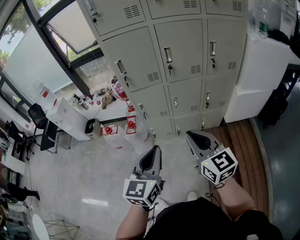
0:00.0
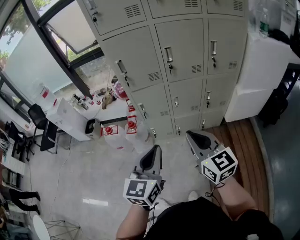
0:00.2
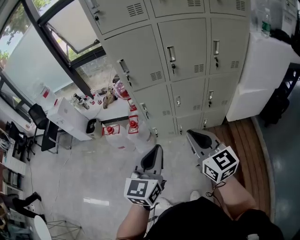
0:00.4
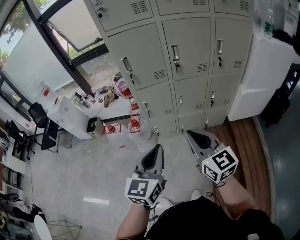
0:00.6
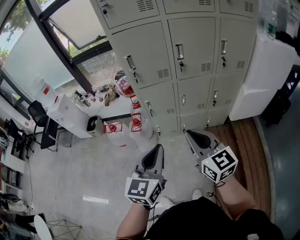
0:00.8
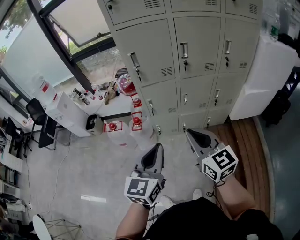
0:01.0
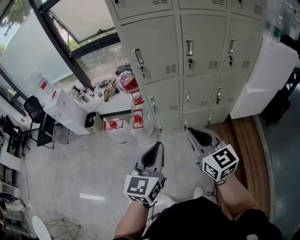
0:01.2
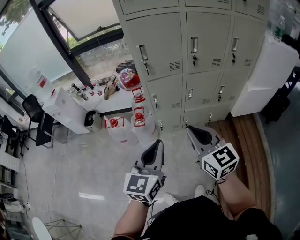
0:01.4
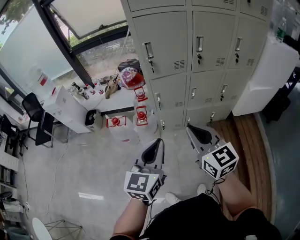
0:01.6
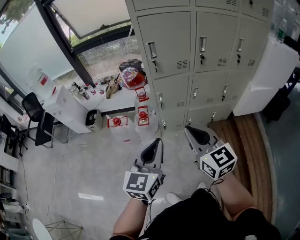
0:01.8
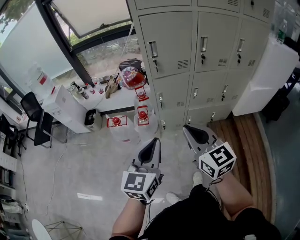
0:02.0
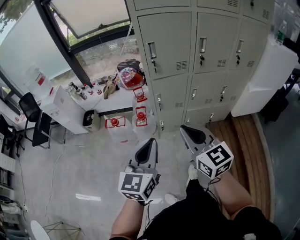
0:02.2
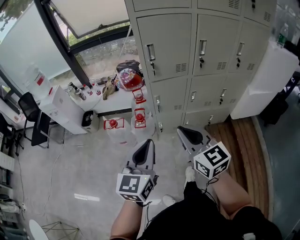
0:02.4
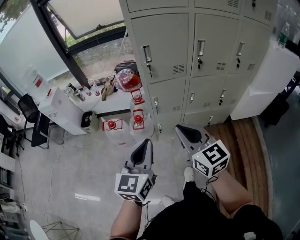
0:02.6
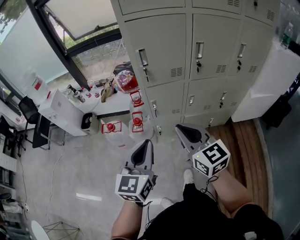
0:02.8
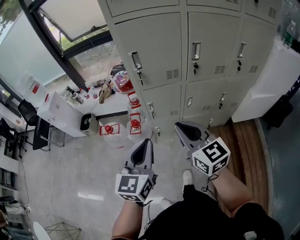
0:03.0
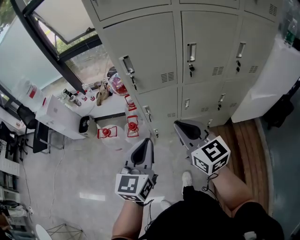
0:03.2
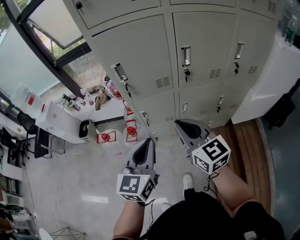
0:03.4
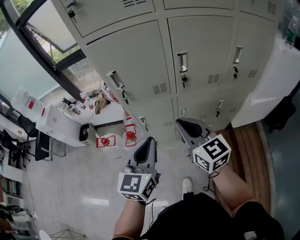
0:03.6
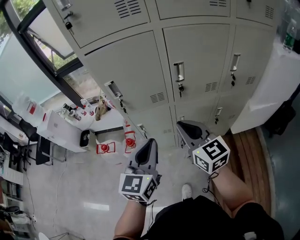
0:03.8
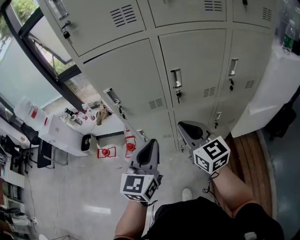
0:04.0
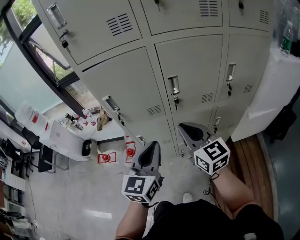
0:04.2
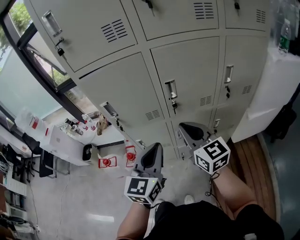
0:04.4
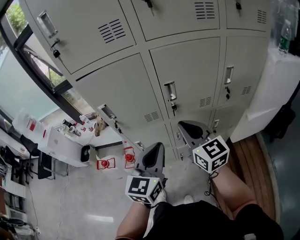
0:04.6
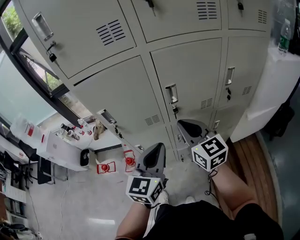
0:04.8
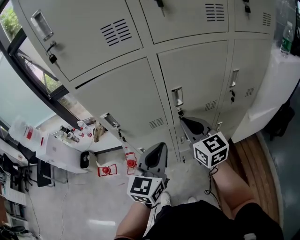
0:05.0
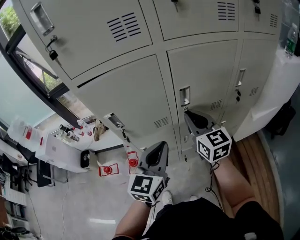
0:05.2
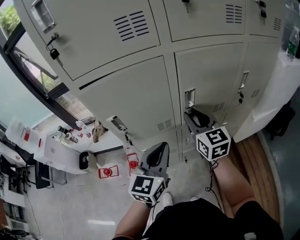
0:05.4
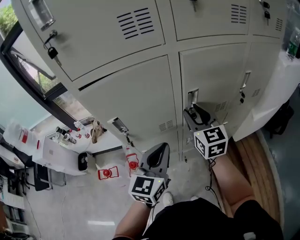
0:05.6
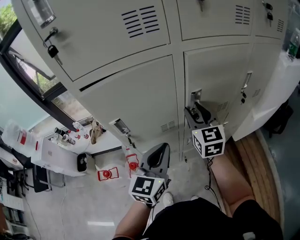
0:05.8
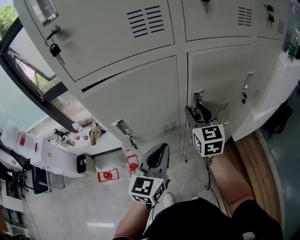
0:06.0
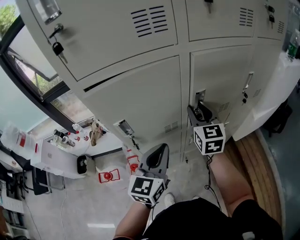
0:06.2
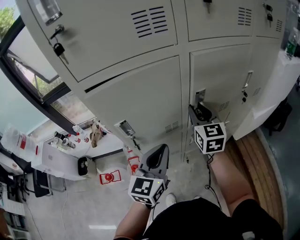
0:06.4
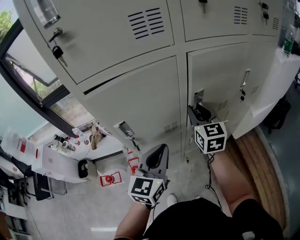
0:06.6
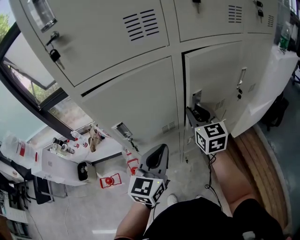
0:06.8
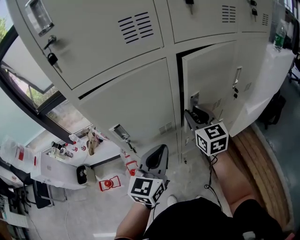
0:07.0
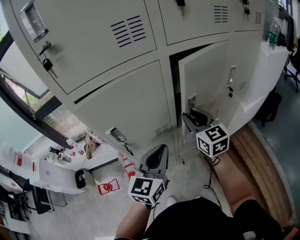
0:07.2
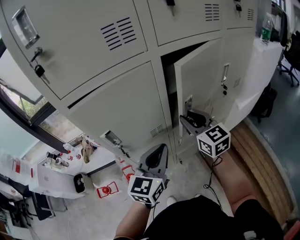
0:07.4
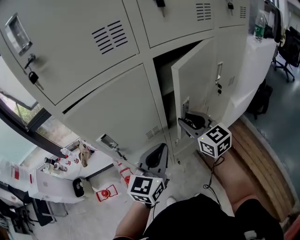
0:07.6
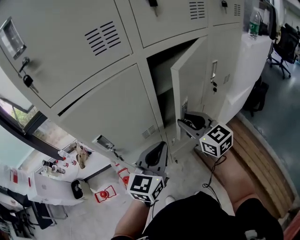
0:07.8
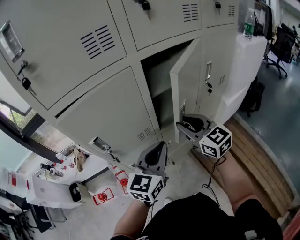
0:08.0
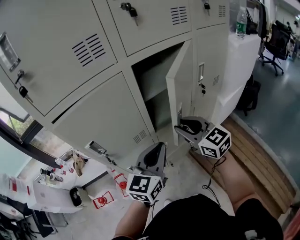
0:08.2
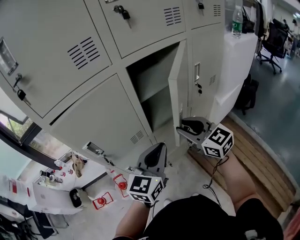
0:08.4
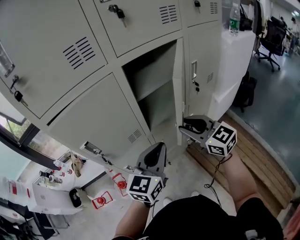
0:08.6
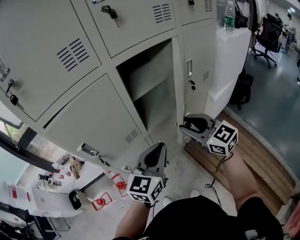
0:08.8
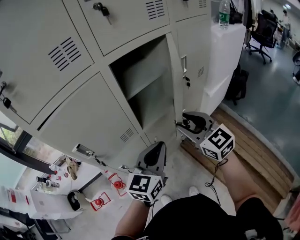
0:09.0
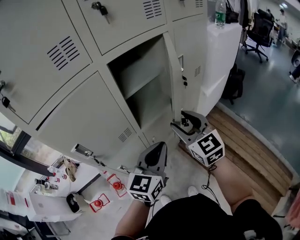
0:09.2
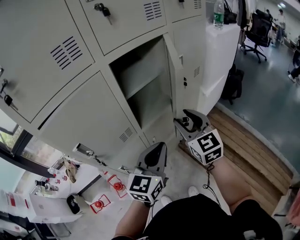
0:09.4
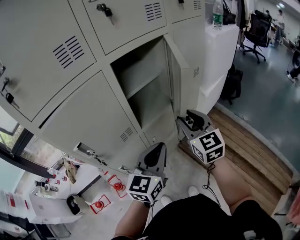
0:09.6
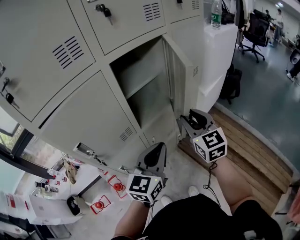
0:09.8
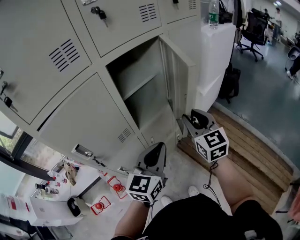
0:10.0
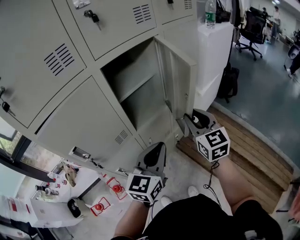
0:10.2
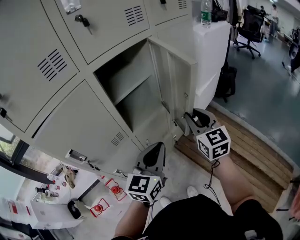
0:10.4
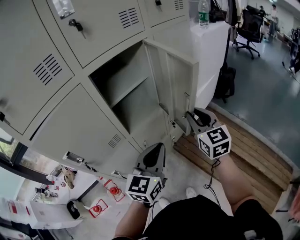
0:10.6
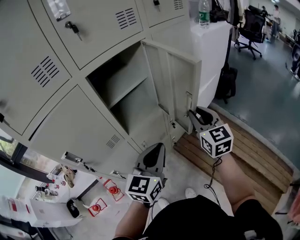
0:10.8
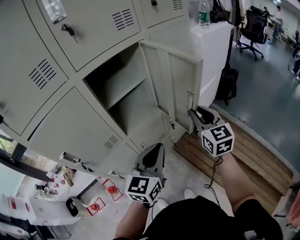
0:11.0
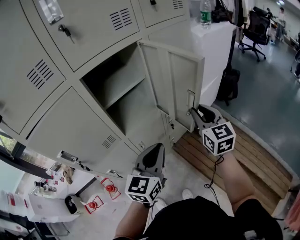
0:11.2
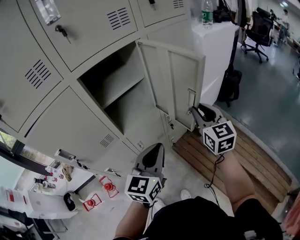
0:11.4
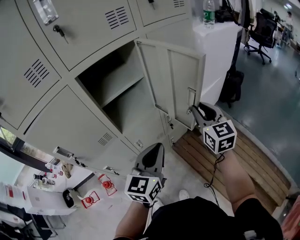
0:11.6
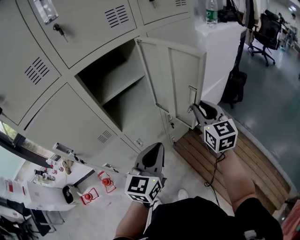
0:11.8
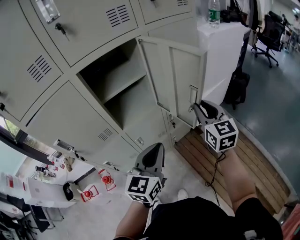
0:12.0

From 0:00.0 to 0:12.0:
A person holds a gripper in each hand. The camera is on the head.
From 0:00.0 to 0:01.6: Both grippers move to the left, roughly 15 cm.
From 0:01.6 to 0:03.0: Both grippers move forward, about 10 cm.
From 0:03.0 to 0:04.4: Both grippers travel together to the right and forward, roughly 25 cm.
From 0:04.4 to 0:06.0: The right gripper is displaced forward by about 15 cm, rotates about 30 degrees, and opens up. The left gripper moves forward and to the left, about 15 cm.
From 0:06.0 to 0:07.6: The right gripper travels backward by some 5 cm.
From 0:07.6 to 0:09.0: The right gripper goes some 10 cm to the right and backward. The left gripper is displaced to the right by roughly 10 cm.
From 0:09.0 to 0:10.4: The right gripper travels to the right by some 10 cm, and changes its angle by about 30 degrees.
From 0:10.4 to 0:12.0: The right gripper moves to the right and forward, roughly 10 cm. The left gripper travels to the right by some 10 cm.

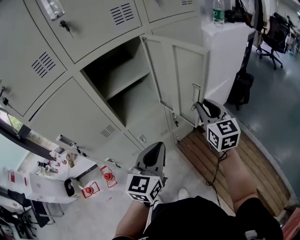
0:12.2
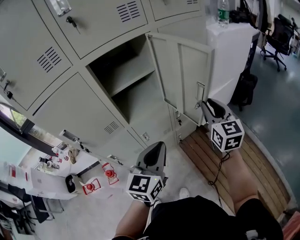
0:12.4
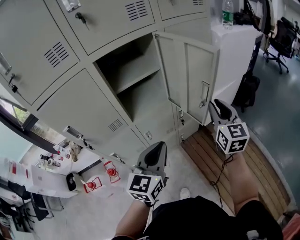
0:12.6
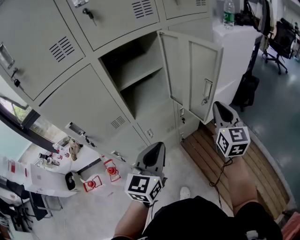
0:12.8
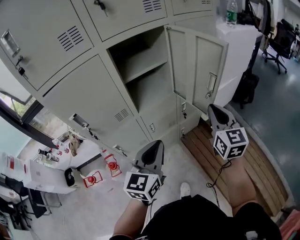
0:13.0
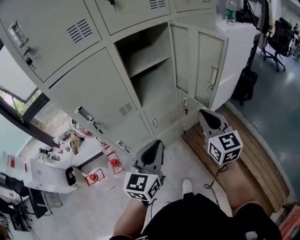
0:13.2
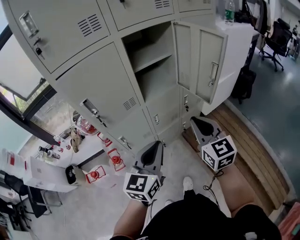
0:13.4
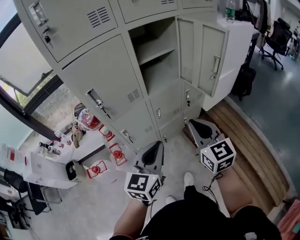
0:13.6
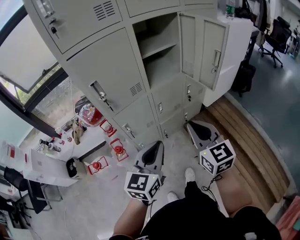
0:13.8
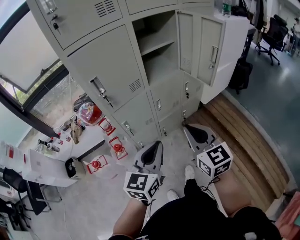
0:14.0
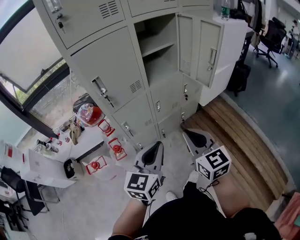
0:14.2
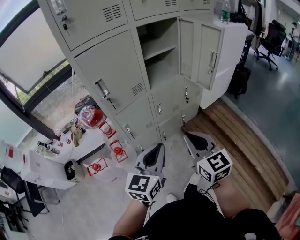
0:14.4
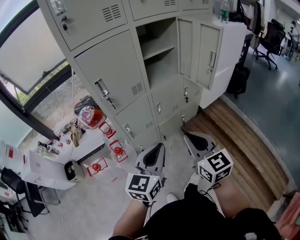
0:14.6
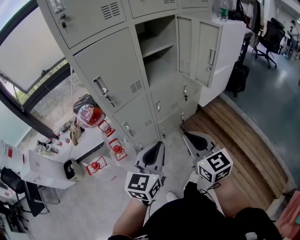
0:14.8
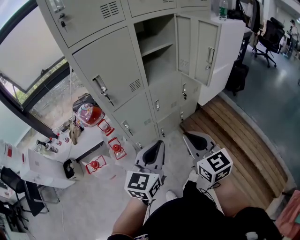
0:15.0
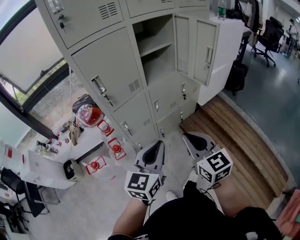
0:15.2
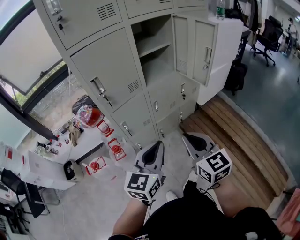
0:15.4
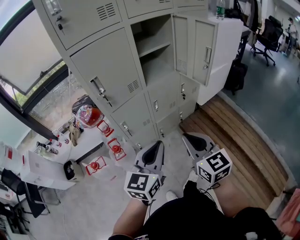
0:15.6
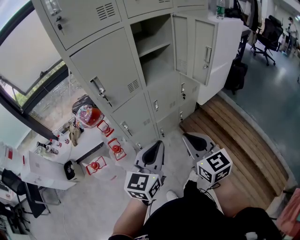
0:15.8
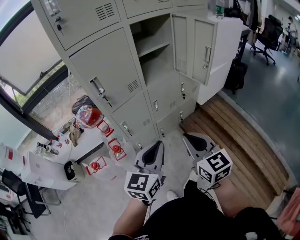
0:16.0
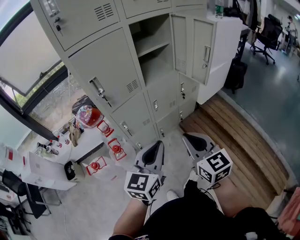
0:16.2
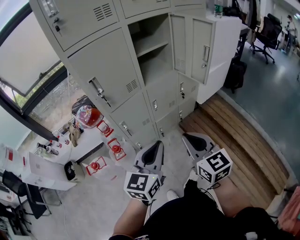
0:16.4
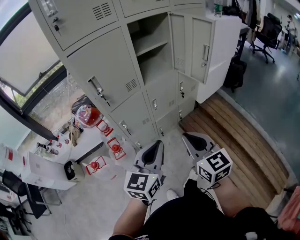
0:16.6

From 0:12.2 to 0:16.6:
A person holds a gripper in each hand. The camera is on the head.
From 0:12.2 to 0:13.6: The two grippers go roughly 25 cm backward and to the left.
From 0:13.6 to 0:15.2: The right gripper moves backward, some 10 cm. The left gripper goes some 10 cm backward.
From 0:15.2 to 0:16.6: Both grippers stay put.

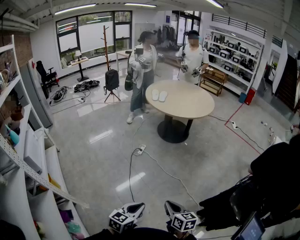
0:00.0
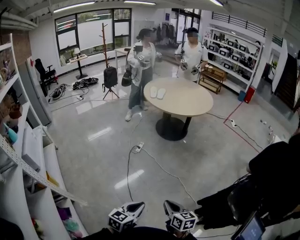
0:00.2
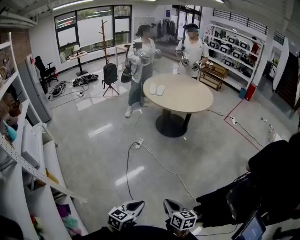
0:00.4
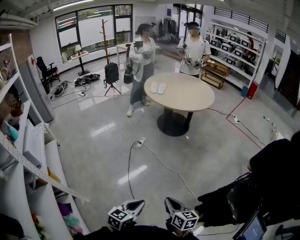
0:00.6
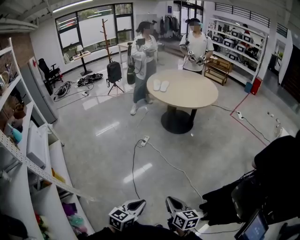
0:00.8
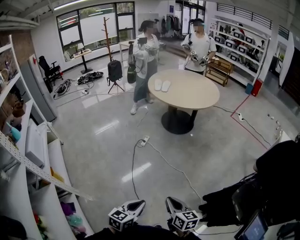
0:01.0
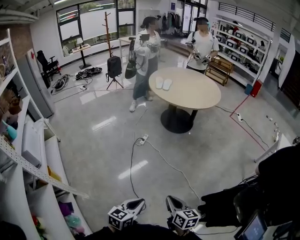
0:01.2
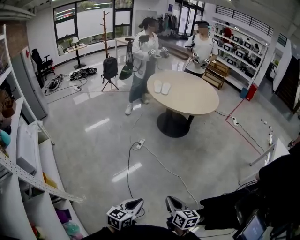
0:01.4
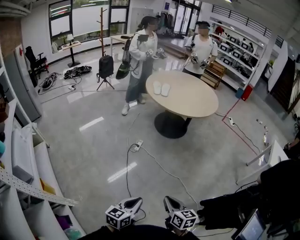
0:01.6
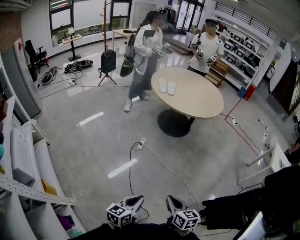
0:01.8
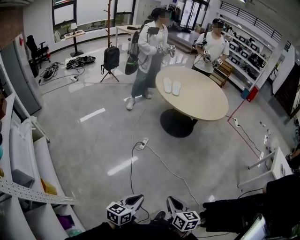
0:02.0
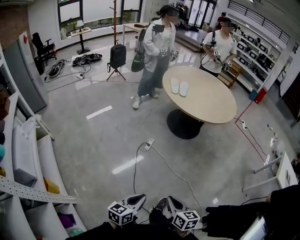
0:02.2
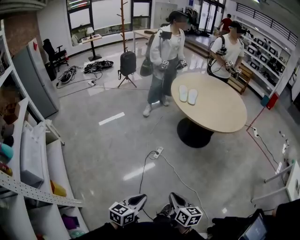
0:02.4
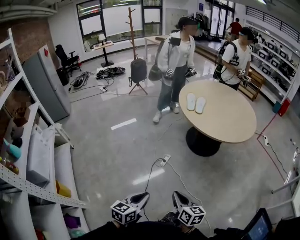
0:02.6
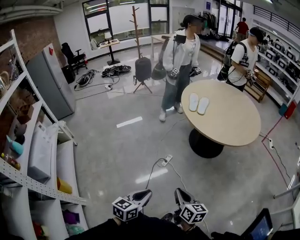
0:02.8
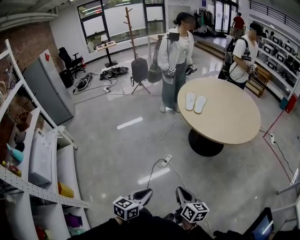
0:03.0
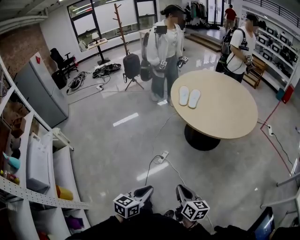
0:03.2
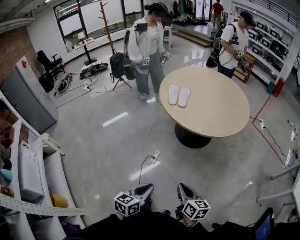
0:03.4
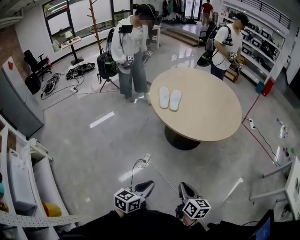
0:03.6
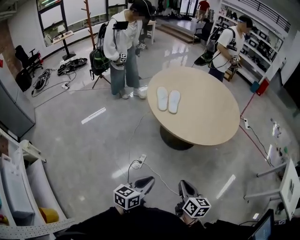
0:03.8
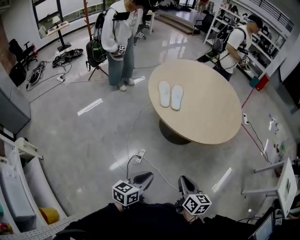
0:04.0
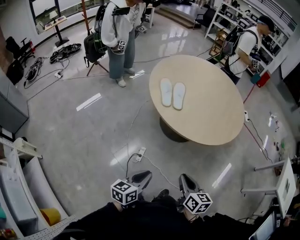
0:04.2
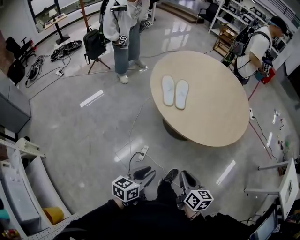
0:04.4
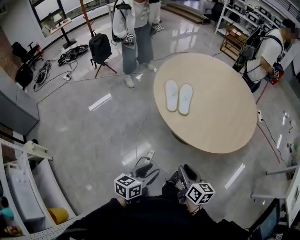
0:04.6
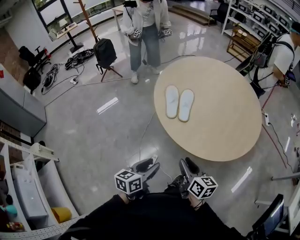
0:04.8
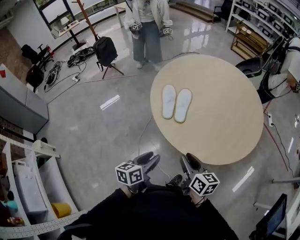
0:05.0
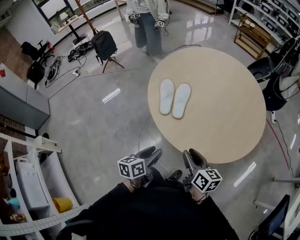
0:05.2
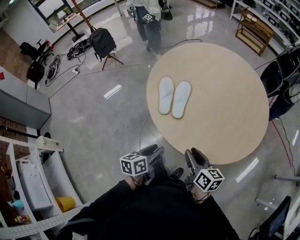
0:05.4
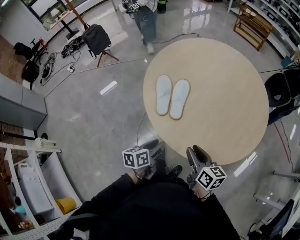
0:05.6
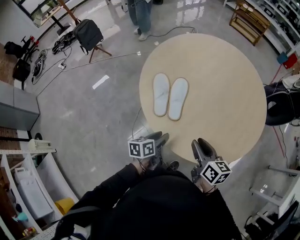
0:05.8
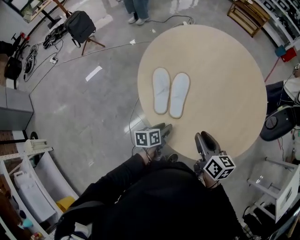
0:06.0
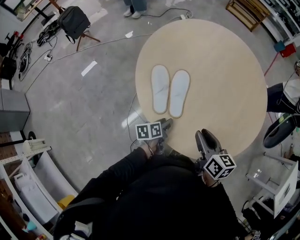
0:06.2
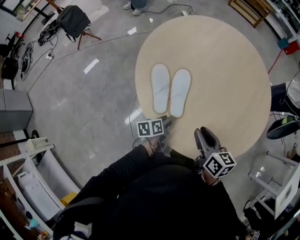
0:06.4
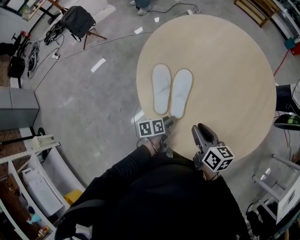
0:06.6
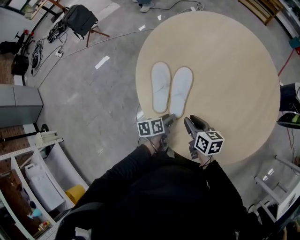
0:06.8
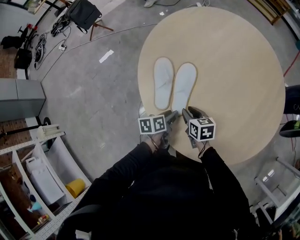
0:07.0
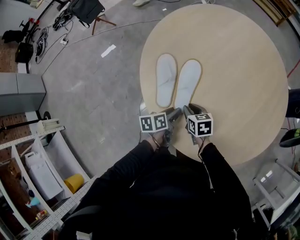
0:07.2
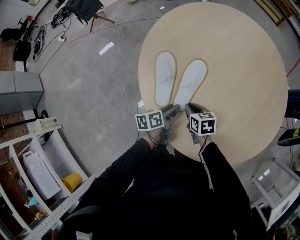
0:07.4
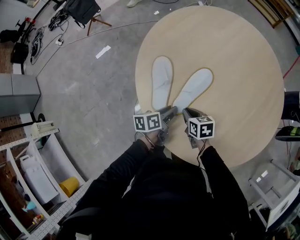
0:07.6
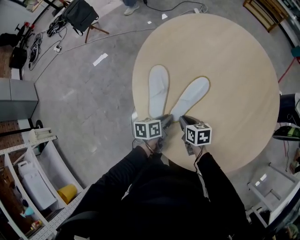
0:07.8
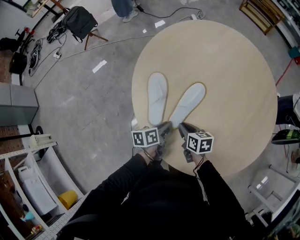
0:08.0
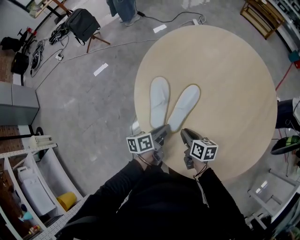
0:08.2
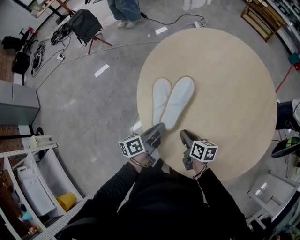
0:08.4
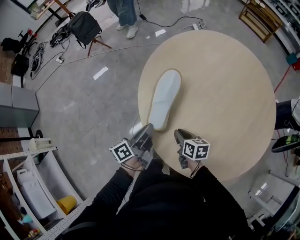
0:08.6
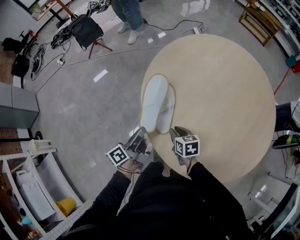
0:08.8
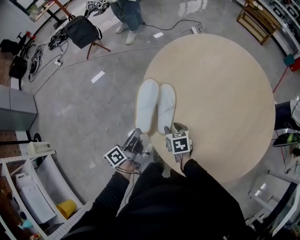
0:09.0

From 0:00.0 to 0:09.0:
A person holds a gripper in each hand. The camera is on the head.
From 0:00.0 to 0:01.6: Both grippers travel together forward and to the left, approximately 20 cm.
From 0:01.6 to 0:03.0: The two grippers go roughly 35 cm forward.
From 0:03.0 to 0:04.4: Both grippers move forward, about 35 cm. The left gripper turns by approximately 20 degrees. Meanwhile the right gripper swivels some 20 degrees.
From 0:04.4 to 0:06.0: Both grippers are carried forward, some 40 cm. The left gripper rotates roughly 30 degrees. Meanwhile the right gripper opens.
From 0:06.0 to 0:07.6: The right gripper travels downward and forward by about 25 cm, and rotates about 30 degrees. Meanwhile the left gripper moves forward, about 10 cm.
From 0:07.6 to 0:09.0: The right gripper travels to the left by some 10 cm, and opens up. The left gripper goes approximately 20 cm to the left and upward, and rotates roughly 30 degrees.
